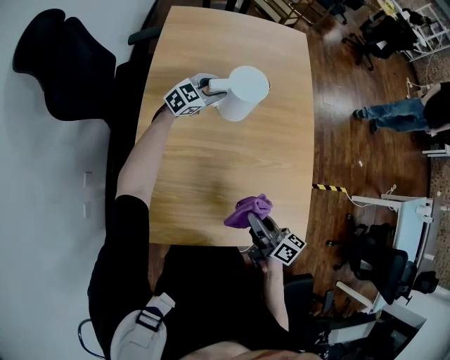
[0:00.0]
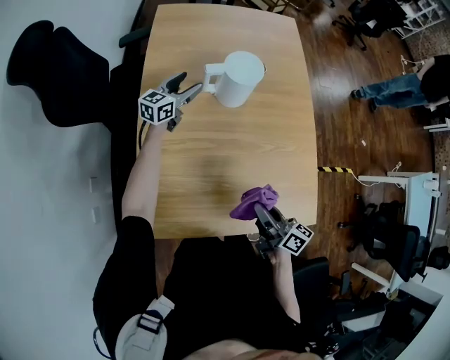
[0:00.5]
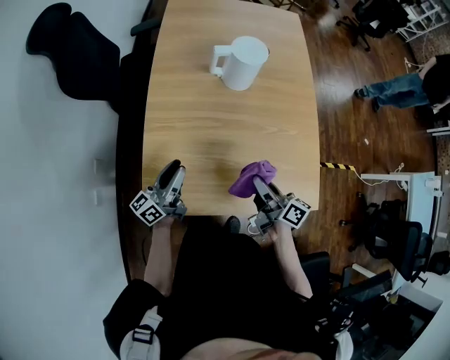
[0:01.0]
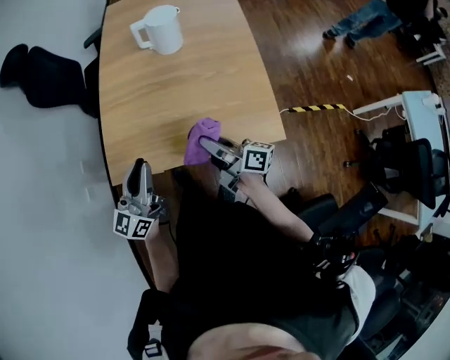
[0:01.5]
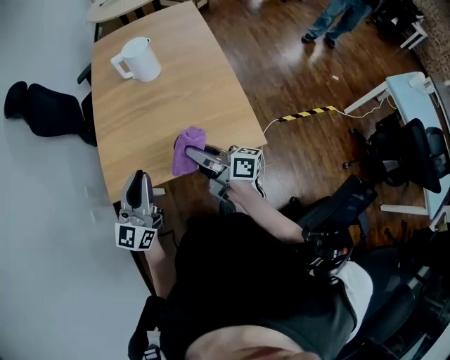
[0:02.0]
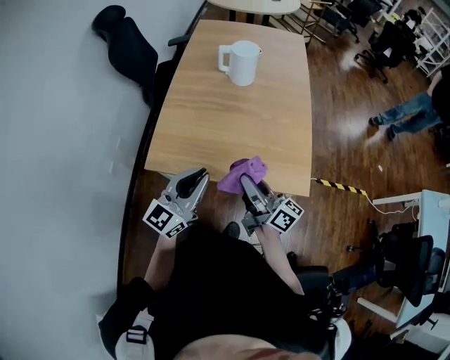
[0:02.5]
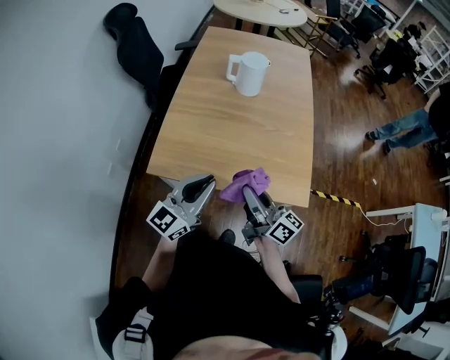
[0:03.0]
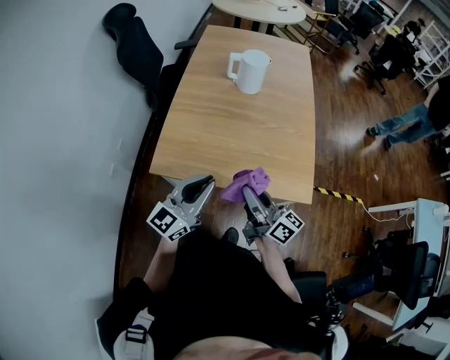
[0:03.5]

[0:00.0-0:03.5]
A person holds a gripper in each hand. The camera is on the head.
0:00.0 to 0:02.0: The right gripper travels backward and to the right by some 30 cm, and turns by approximately 30 degrees. The left gripper travels backward by some 70 cm, tilts its fingers roughly 40 degrees upward, and closes up.
0:02.0 to 0:03.5: Both grippers move to the left, some 5 cm.

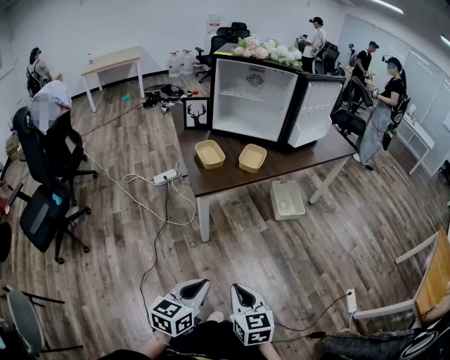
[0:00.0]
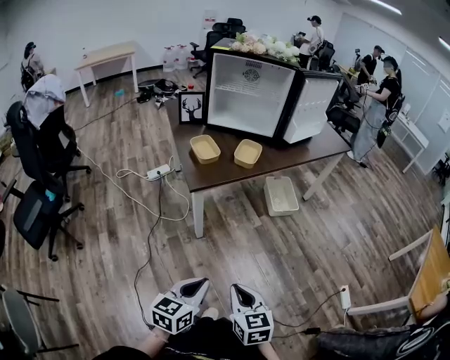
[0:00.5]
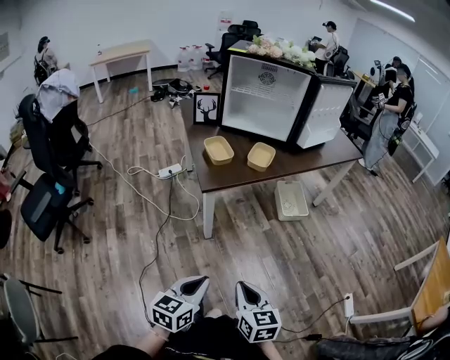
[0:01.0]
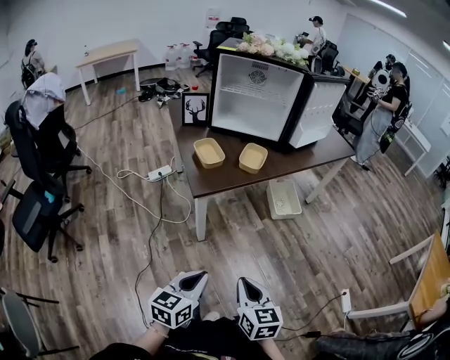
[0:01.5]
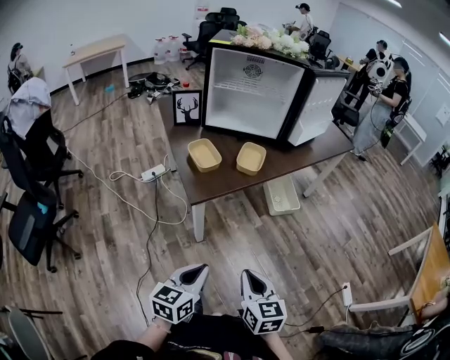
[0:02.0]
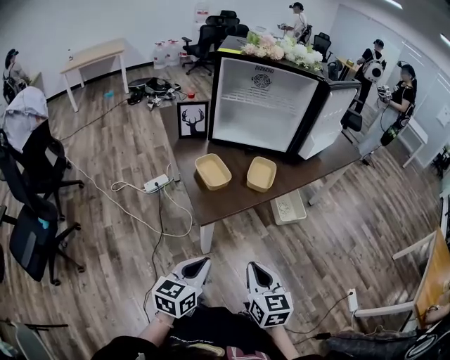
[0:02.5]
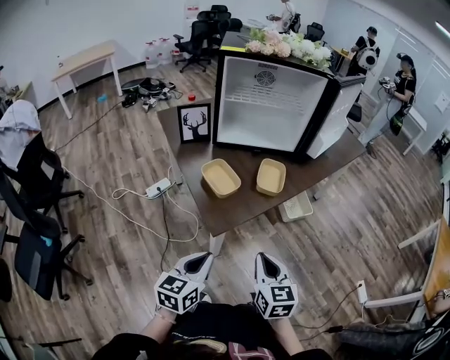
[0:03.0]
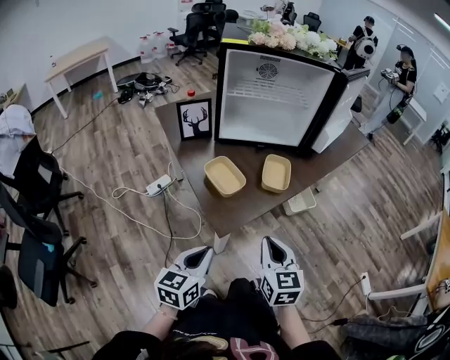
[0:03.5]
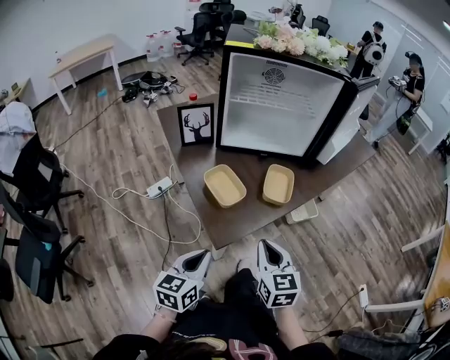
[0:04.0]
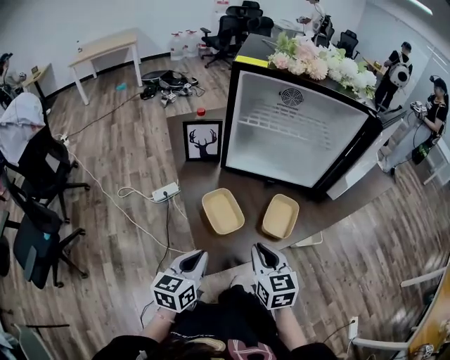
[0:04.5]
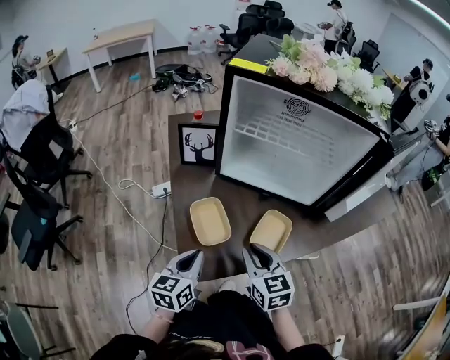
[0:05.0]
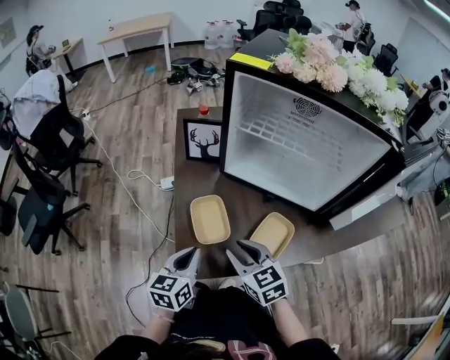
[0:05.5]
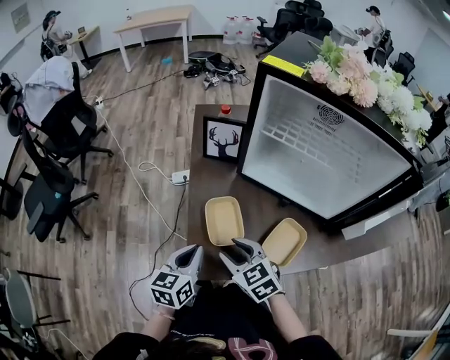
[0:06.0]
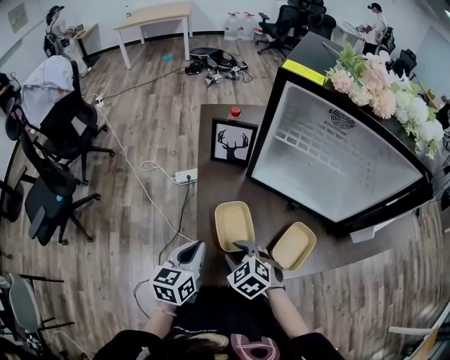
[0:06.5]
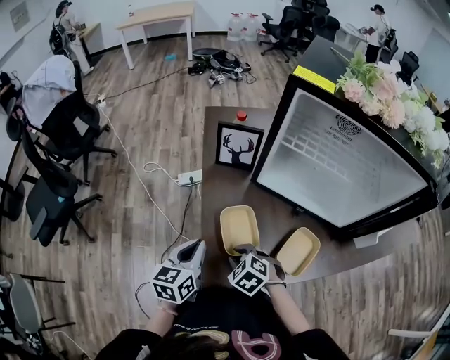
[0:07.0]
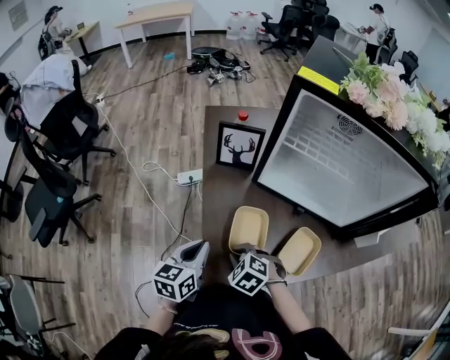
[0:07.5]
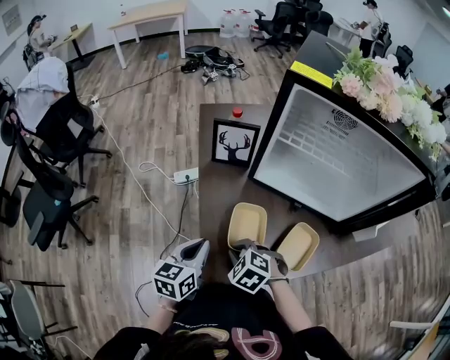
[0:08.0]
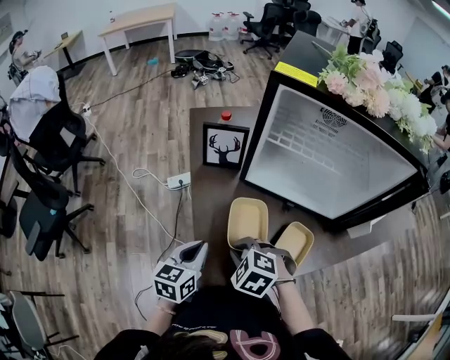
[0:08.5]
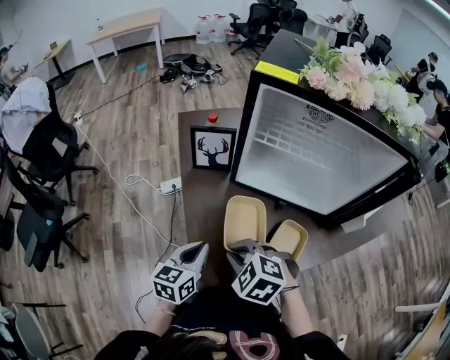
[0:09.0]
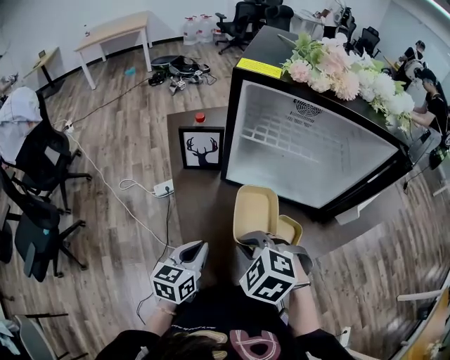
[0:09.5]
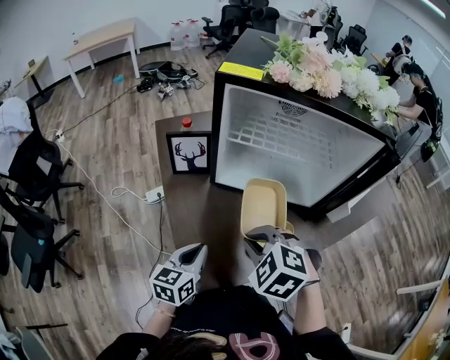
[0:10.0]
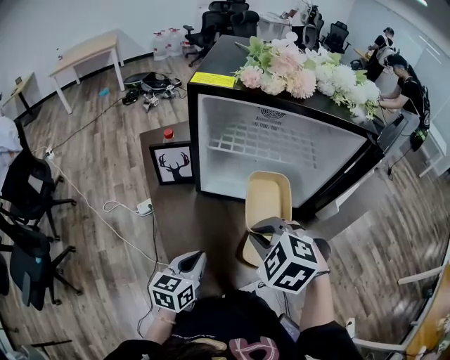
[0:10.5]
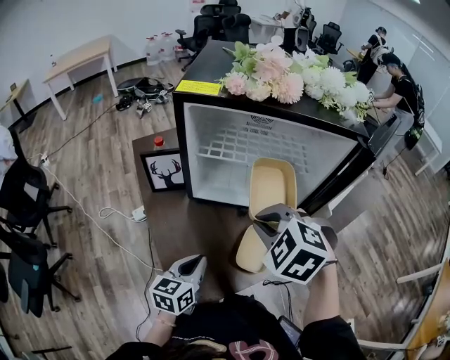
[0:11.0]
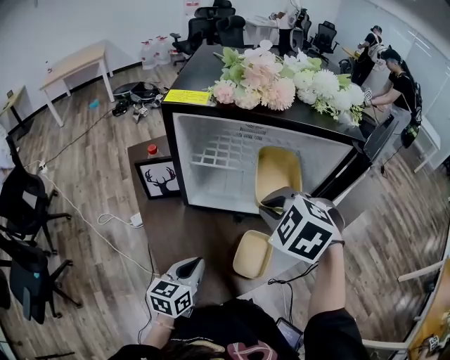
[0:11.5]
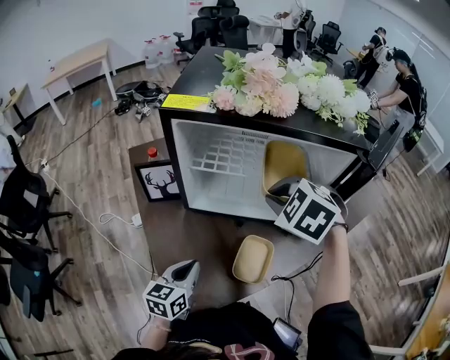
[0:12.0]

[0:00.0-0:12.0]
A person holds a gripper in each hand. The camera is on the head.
0:00.0 to 0:02.0: Both grippers move forward, some 10 cm.
0:02.0 to 0:04.0: Both grippers move forward and to the left, approximately 25 cm.
0:04.0 to 0:06.0: The left gripper moves approximately 15 cm, and turns by some 30 degrees; the right gripper moves about 20 cm, changes its angle by about 60 degrees, and opens up.
0:06.0 to 0:08.0: The left gripper moves forward, about 5 cm. The right gripper shifts approximately 5 cm downward, swivels roughly 30 degrees, and closes up.
0:08.0 to 0:10.0: The left gripper shifts some 10 cm to the right; the right gripper heads upward and to the right, covering roughly 20 cm.
0:10.0 to 0:12.0: The right gripper heads forward, to the right and upward, covering some 20 cm, while the left gripper ends up roughly 5 cm from where it was.

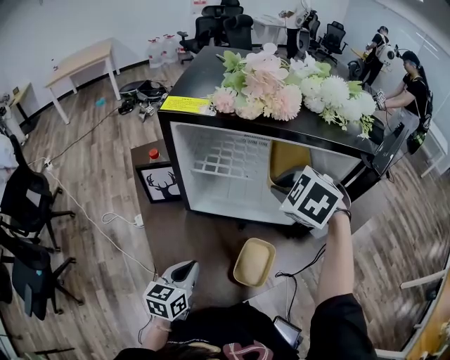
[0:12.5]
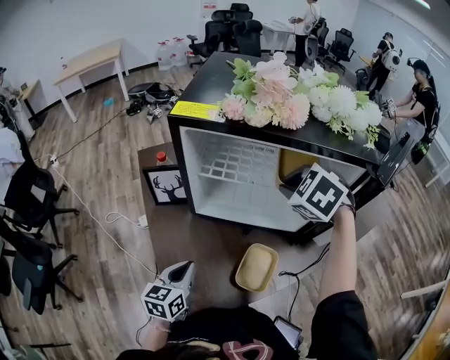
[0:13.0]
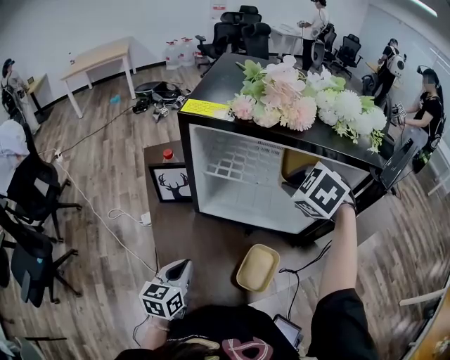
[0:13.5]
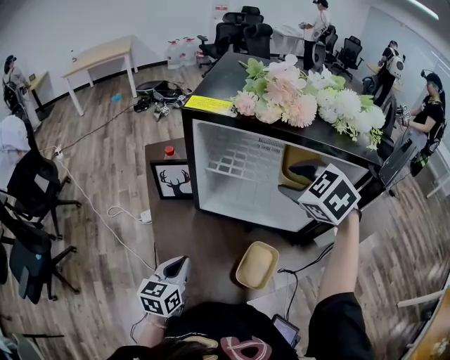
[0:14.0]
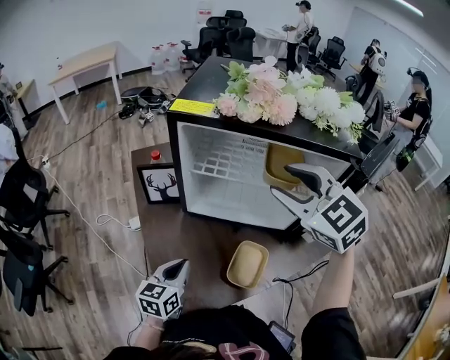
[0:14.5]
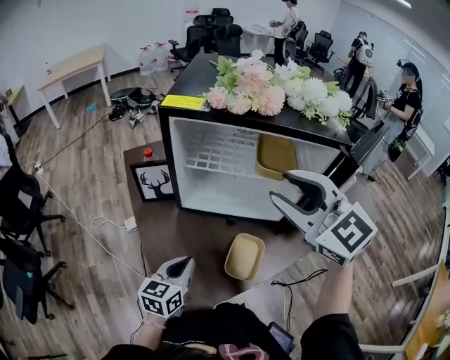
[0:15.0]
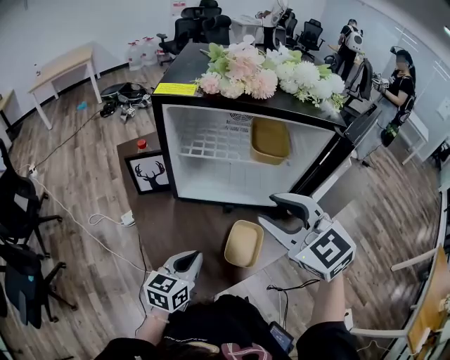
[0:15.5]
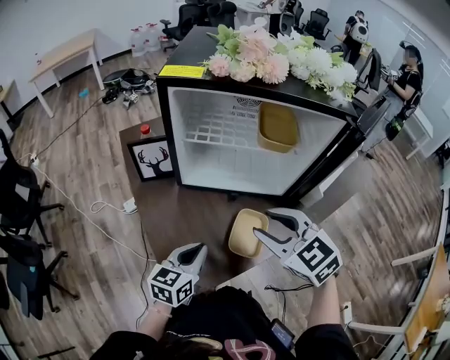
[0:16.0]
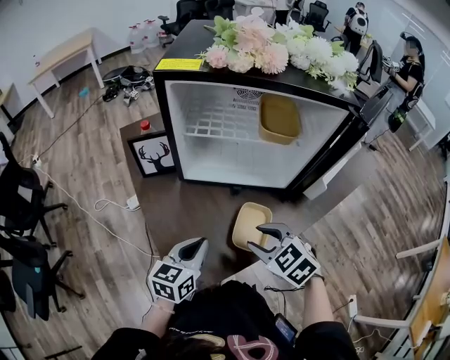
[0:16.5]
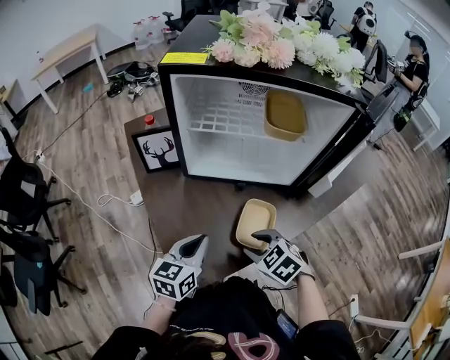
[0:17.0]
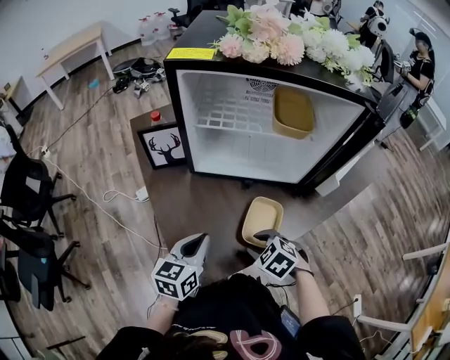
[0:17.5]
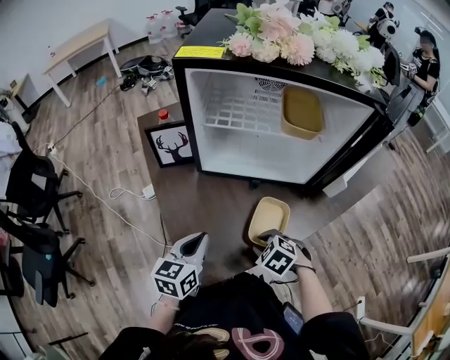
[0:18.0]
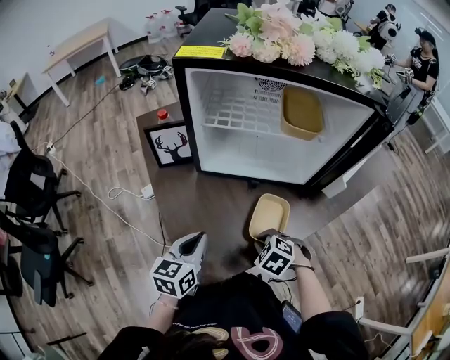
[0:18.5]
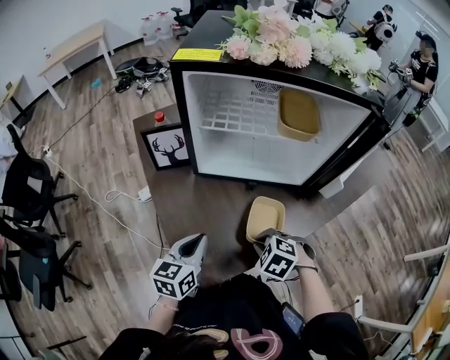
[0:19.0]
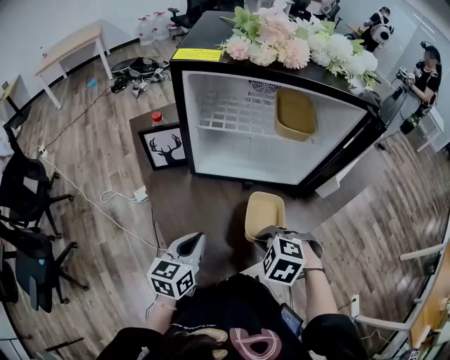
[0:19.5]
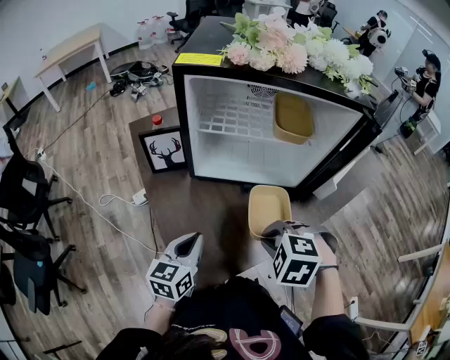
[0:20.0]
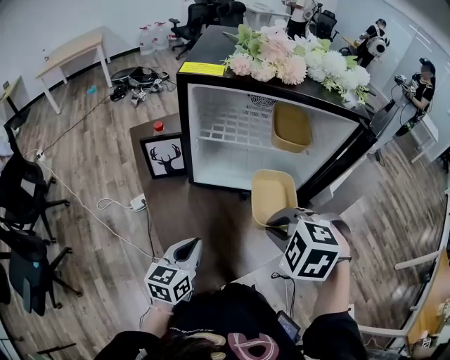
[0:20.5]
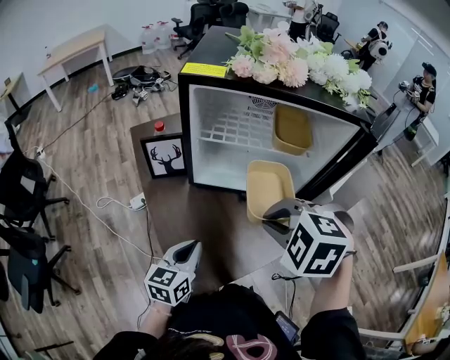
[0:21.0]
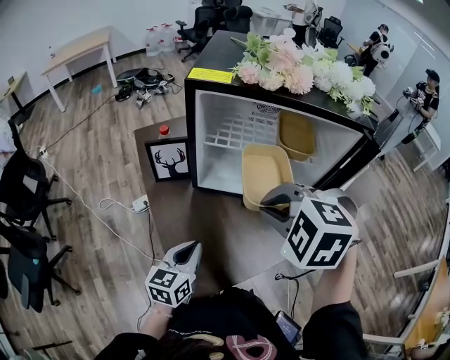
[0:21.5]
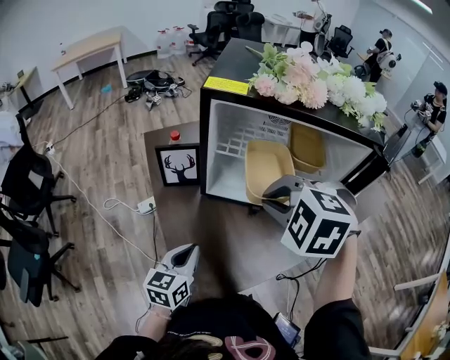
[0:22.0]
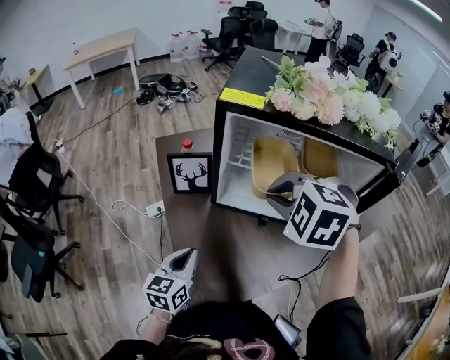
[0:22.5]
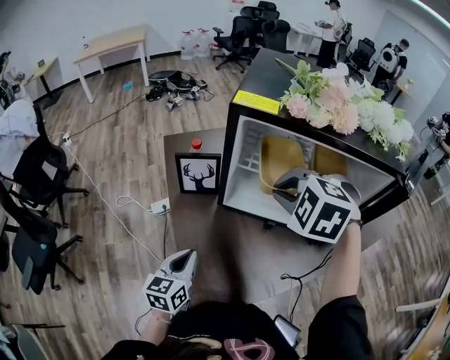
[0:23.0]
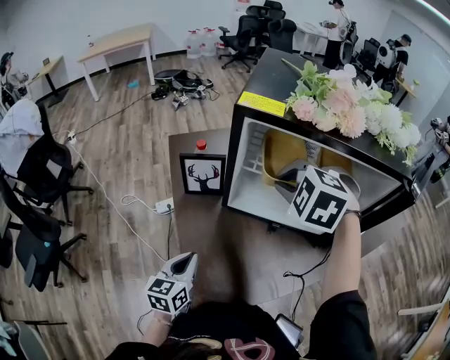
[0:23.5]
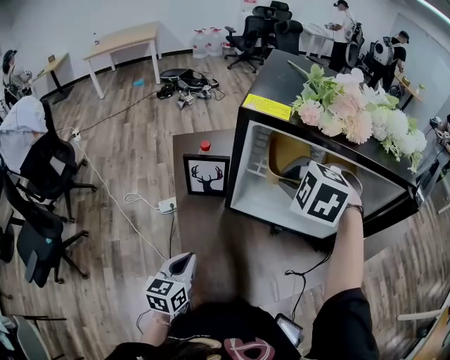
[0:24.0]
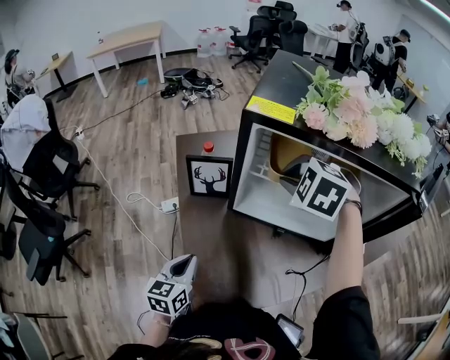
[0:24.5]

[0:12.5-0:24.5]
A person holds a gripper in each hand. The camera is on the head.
0:12.5 to 0:14.5: The right gripper heads upward, covering approximately 10 cm, points its fingers about 30 degrees further upward, and opens.
0:14.5 to 0:16.5: The left gripper shifts by some 5 cm, while the right gripper heads downward and backward, covering roughly 30 cm, and rotates approximately 30 degrees.
0:16.5 to 0:18.5: The right gripper heads downward, covering some 15 cm, changes its angle by about 20 degrees, and closes its fingers.
0:18.5 to 0:20.5: The right gripper travels upward by some 25 cm.
0:20.5 to 0:22.5: The right gripper shifts roughly 15 cm forward, upward and to the left. The left gripper heads to the left, covering about 5 cm.
0:22.5 to 0:24.5: The right gripper travels forward by some 10 cm.
